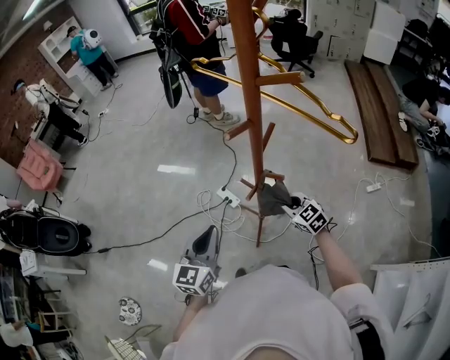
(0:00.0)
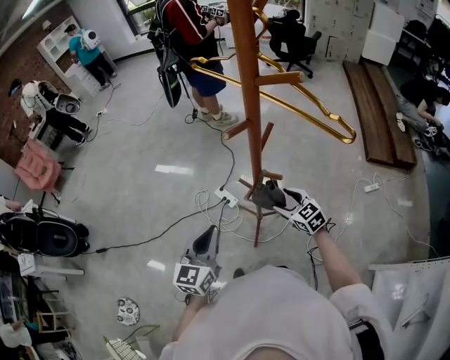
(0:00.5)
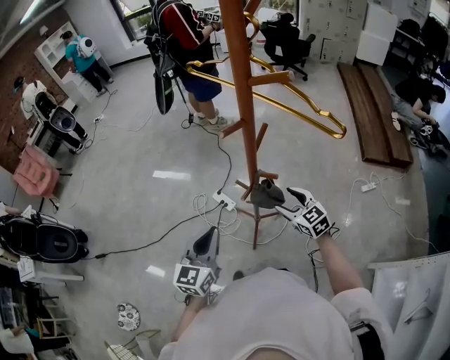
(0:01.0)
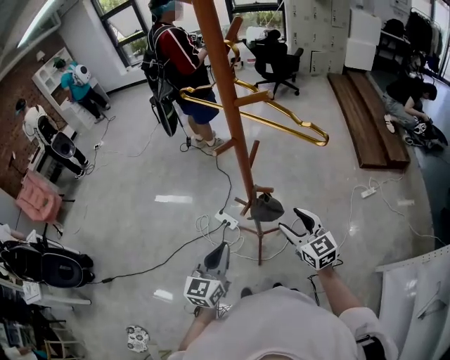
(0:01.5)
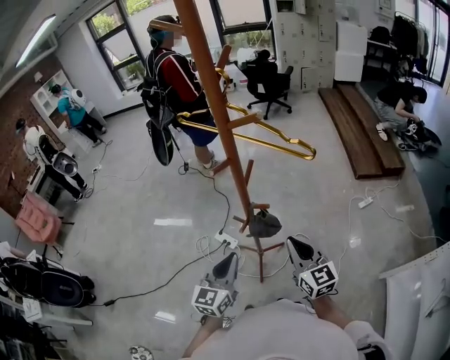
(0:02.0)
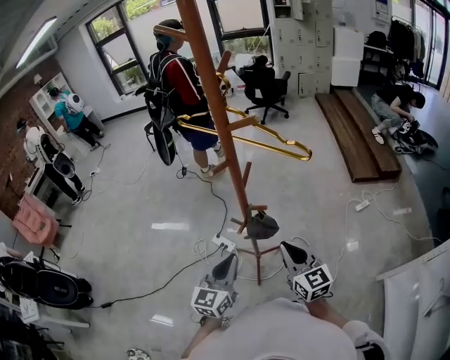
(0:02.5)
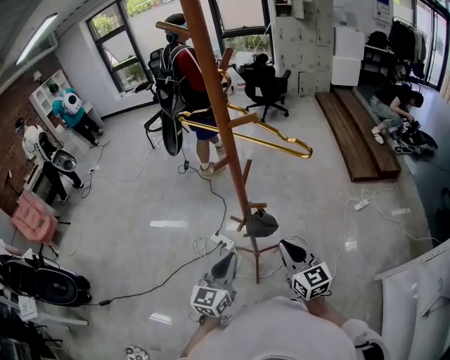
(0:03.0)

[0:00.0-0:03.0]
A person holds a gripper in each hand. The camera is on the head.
0:00.0 to 0:01.5: The right gripper moves upward and backward, roughly 15 cm, rotates roughly 30 degrees, and opens up.
0:01.5 to 0:03.0: The right gripper goes roughly 5 cm backward, and closes its fingers.

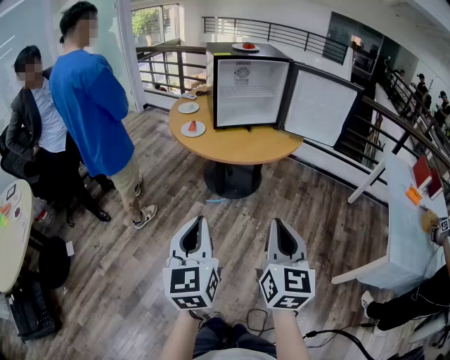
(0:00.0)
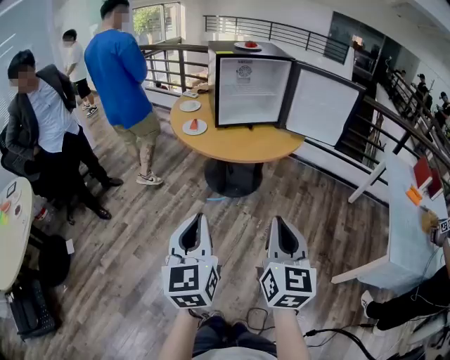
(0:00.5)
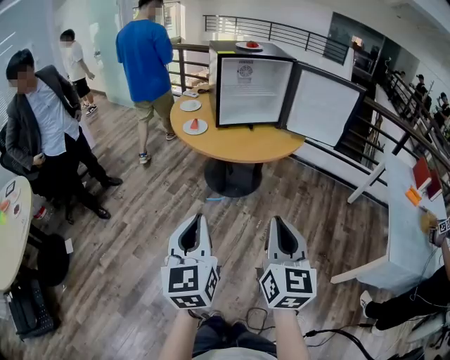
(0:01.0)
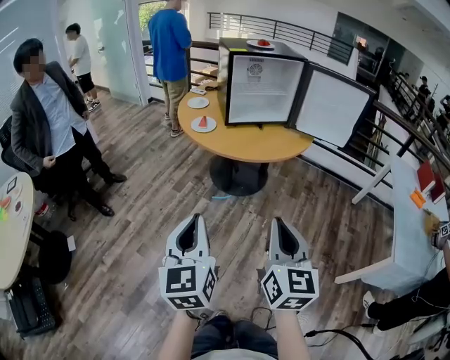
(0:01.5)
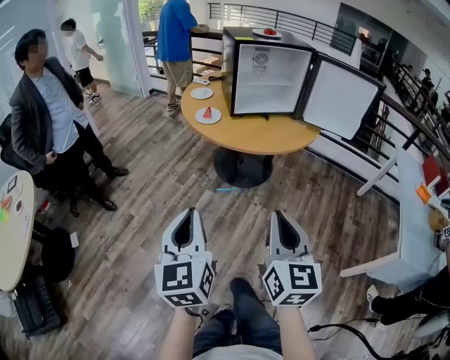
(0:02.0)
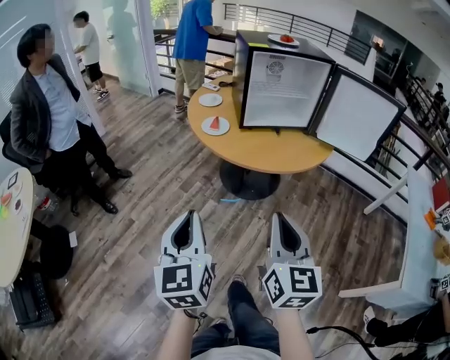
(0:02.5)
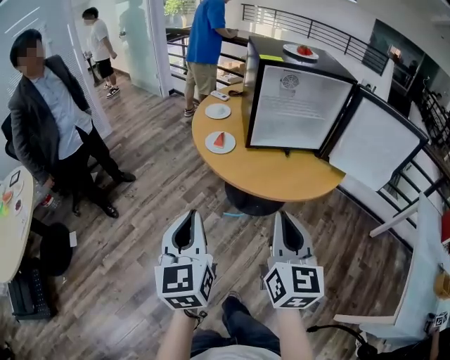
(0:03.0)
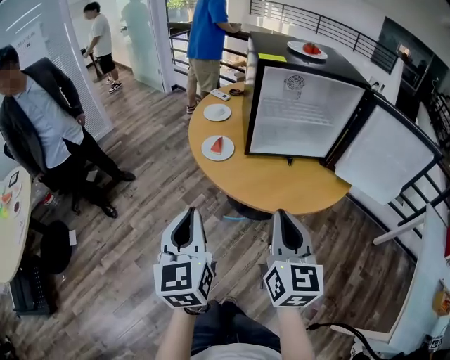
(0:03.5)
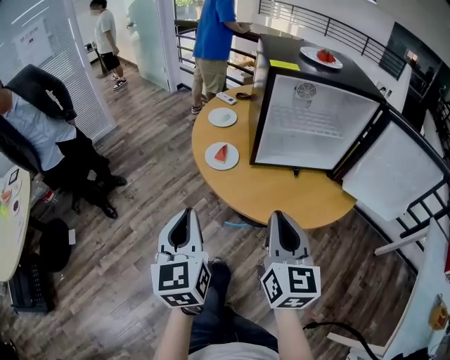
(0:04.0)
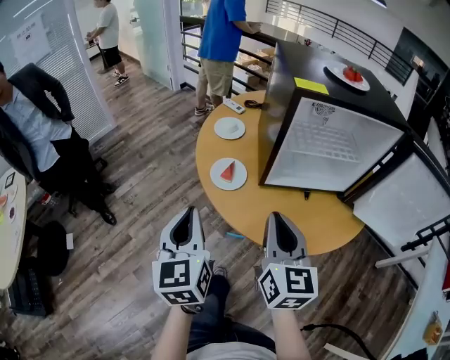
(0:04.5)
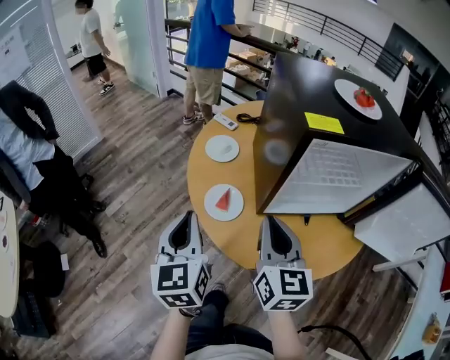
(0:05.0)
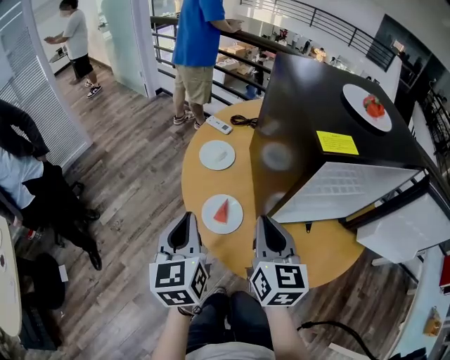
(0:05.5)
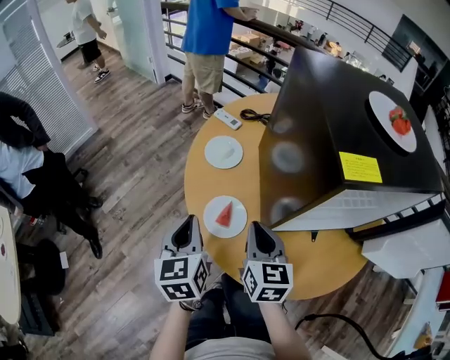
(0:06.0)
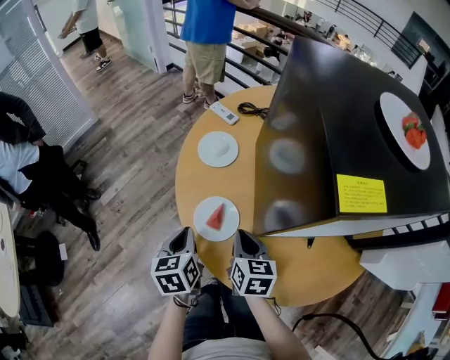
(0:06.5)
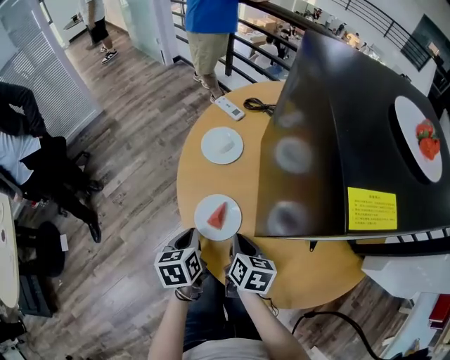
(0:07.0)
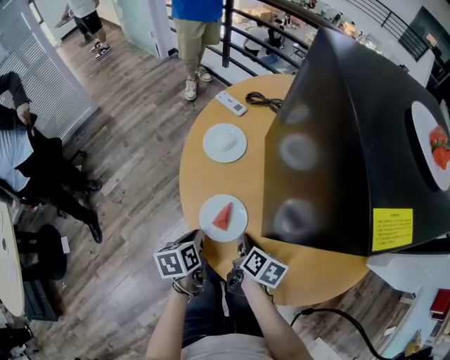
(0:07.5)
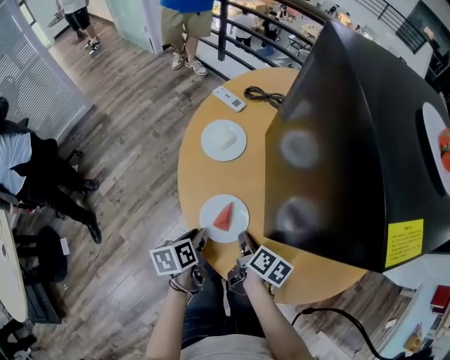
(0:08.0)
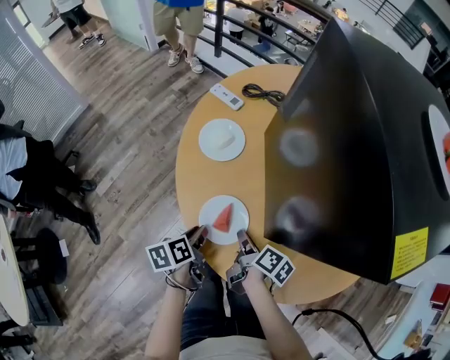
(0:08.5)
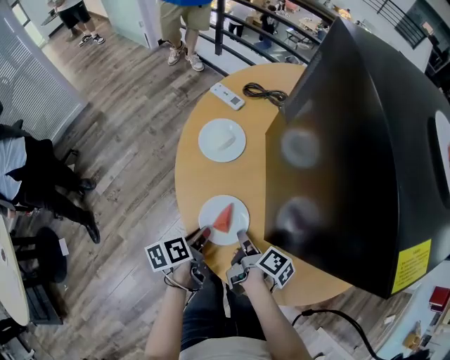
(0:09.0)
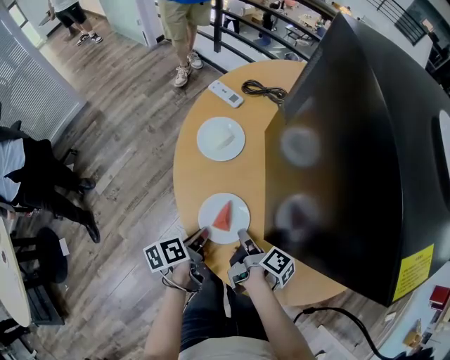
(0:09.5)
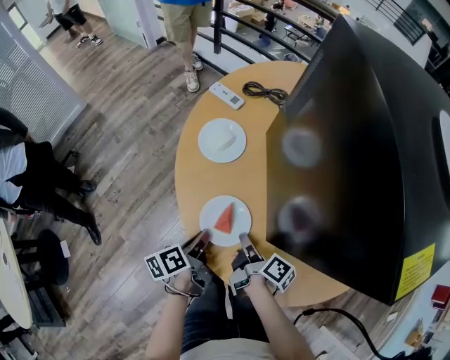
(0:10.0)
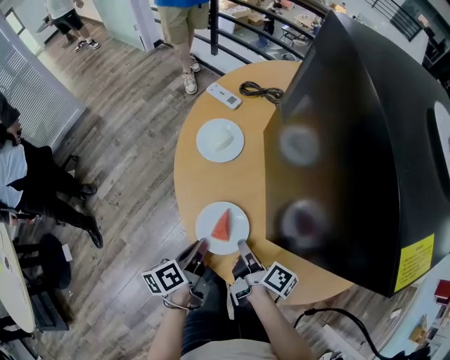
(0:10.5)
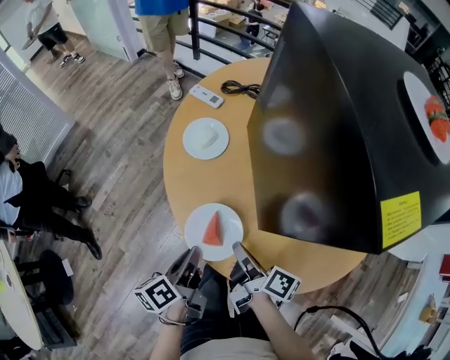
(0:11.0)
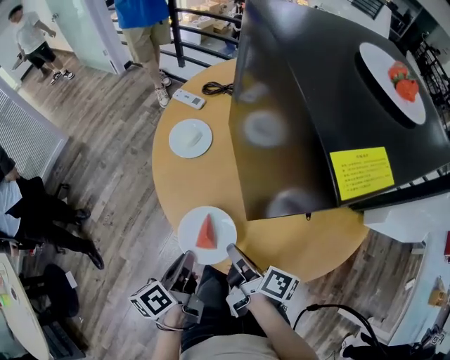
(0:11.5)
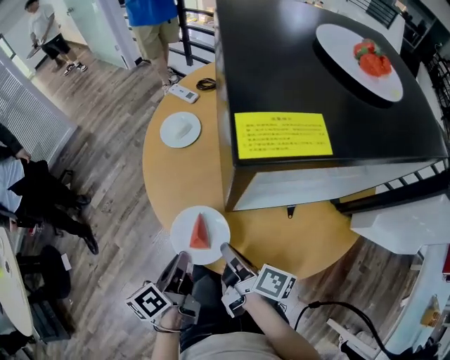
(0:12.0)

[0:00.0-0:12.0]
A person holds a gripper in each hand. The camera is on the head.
0:00.0 to 0:02.0: The two grippers go approximately 10 cm to the left.
0:02.0 to 0:04.0: The two grippers go roughly 35 cm forward.
0:04.0 to 0:06.0: The grippers both shift forward by approximately 30 cm.
0:06.0 to 0:08.0: Both grippers move downward, approximately 20 cm. The right gripper rotates around the line of its fingers by roughly 50 degrees, clockwise from behind; the left gripper rotates some 40 degrees, and opens up.
0:08.0 to 0:10.0: The left gripper changes its angle by approximately 20 degrees. Meanwhile the right gripper turns by approximately 30 degrees.
0:10.0 to 0:12.0: The left gripper is displaced backward, upward and to the right by about 15 cm; the right gripper goes roughly 15 cm upward, backward and to the right.

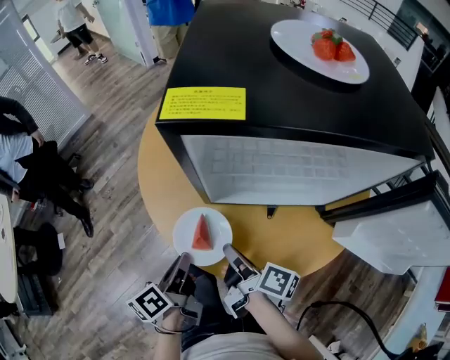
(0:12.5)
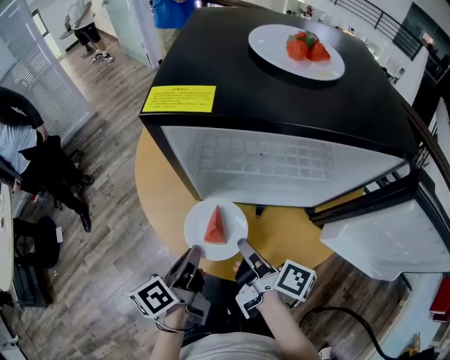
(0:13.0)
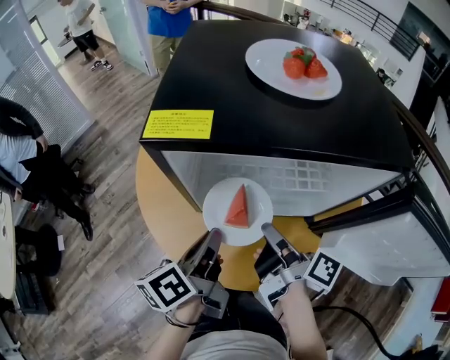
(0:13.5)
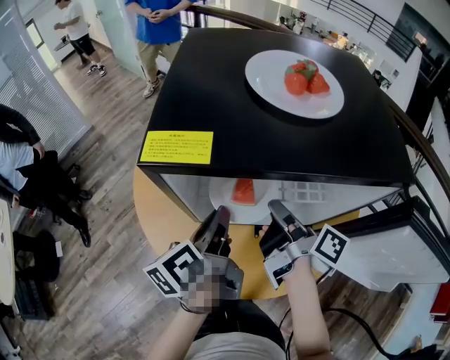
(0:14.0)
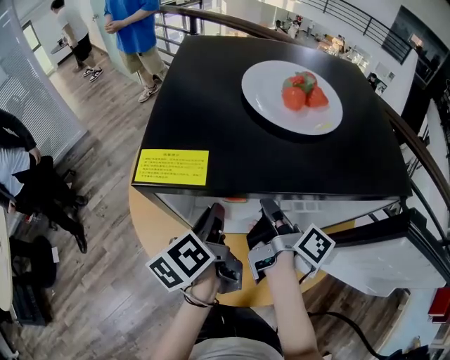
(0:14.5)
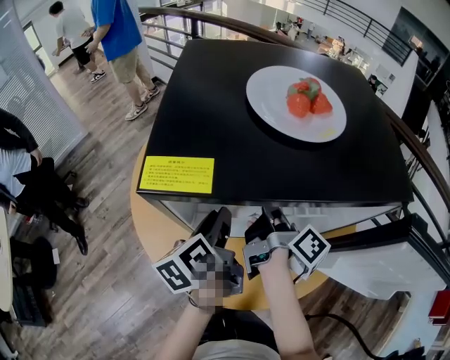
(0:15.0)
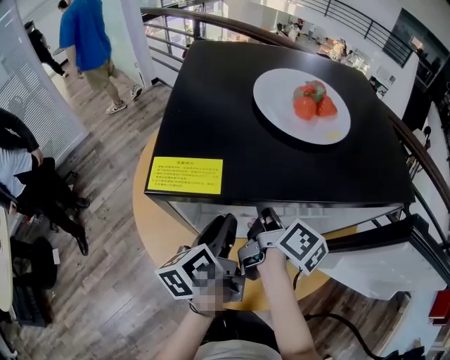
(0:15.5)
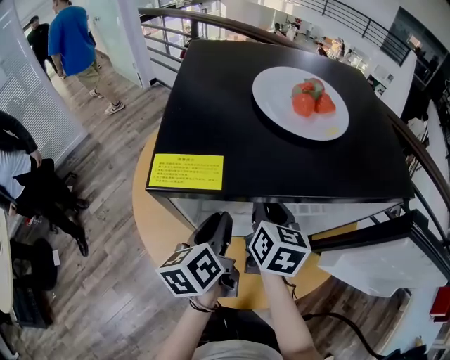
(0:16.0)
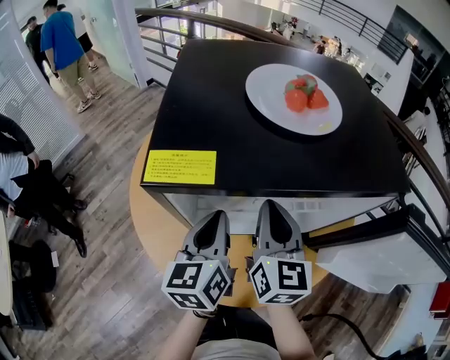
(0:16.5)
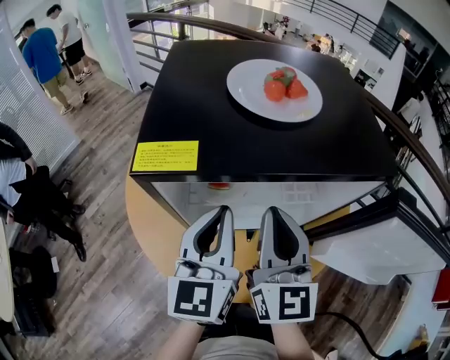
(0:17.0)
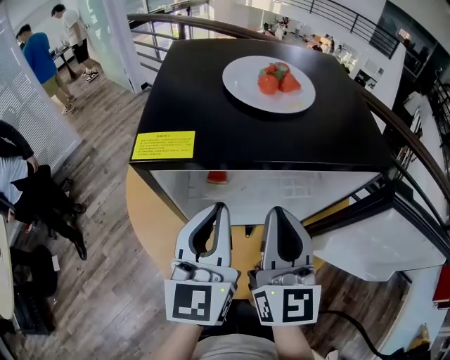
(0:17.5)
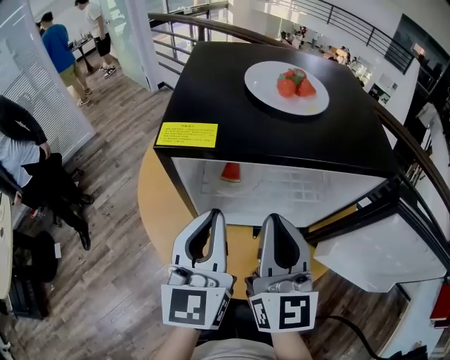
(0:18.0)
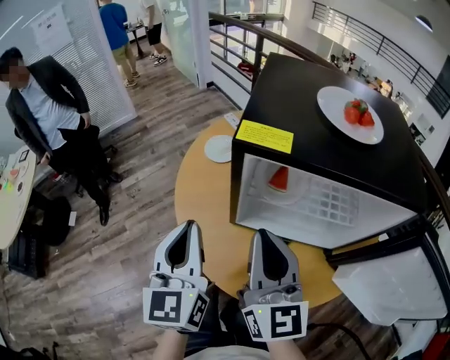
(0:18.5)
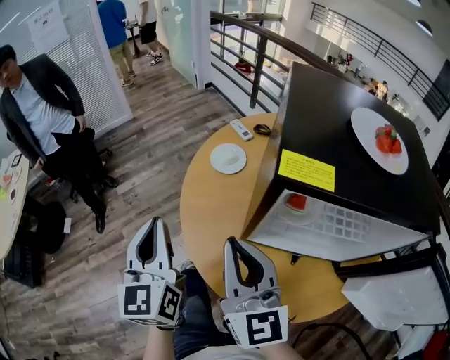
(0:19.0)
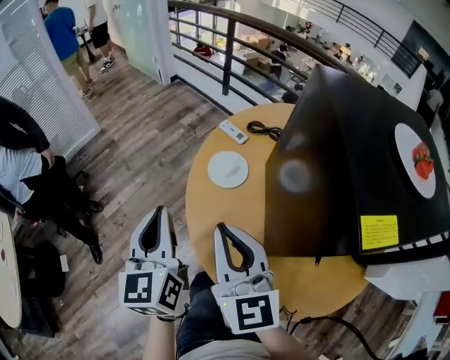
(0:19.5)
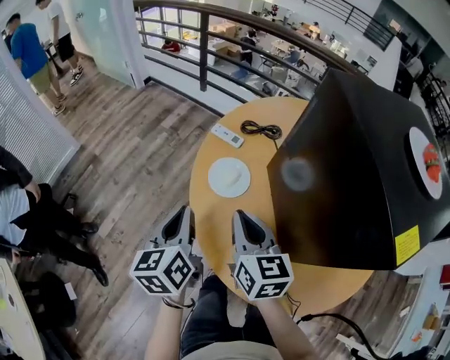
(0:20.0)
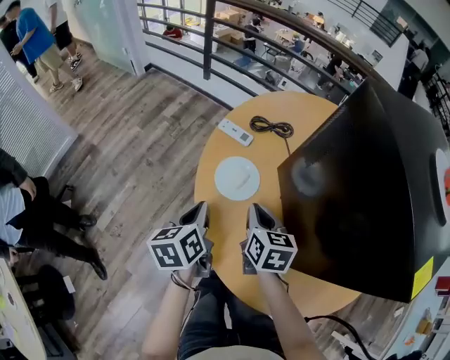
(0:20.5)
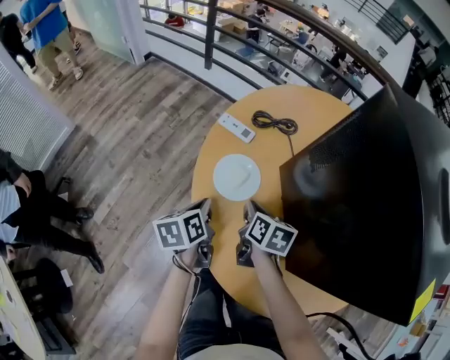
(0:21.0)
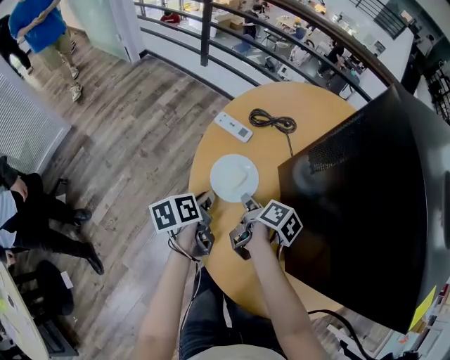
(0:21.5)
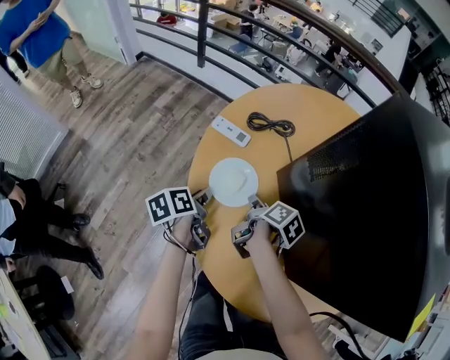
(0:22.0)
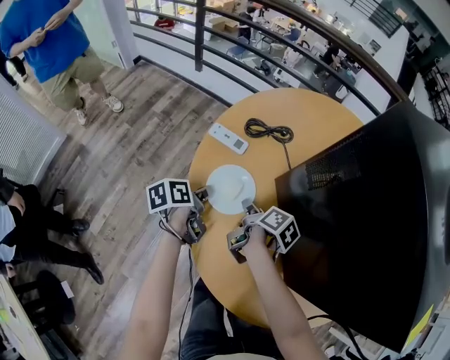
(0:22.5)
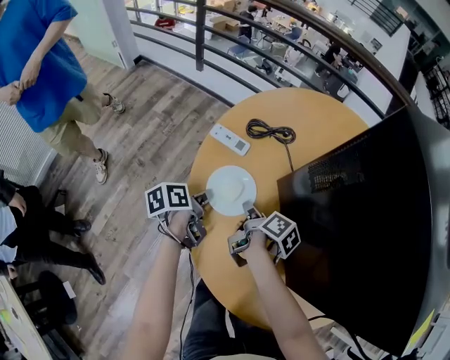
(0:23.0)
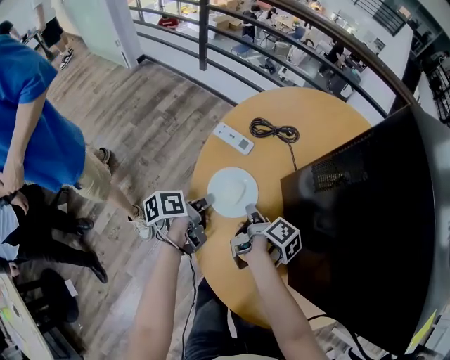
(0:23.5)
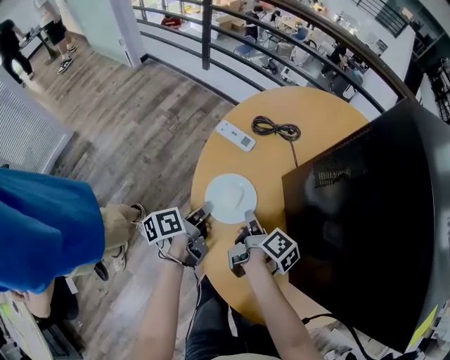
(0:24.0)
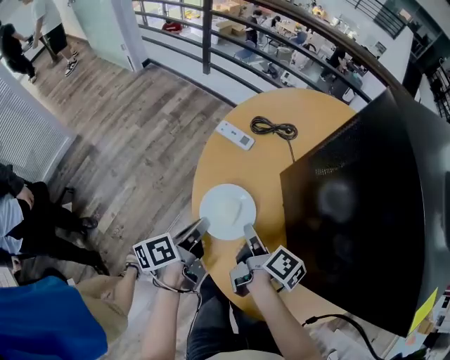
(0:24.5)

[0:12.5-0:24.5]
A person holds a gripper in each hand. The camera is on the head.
0:12.5 to 0:14.5: Both grippers move forward, to the right and upward, about 25 cm. The right gripper rotates about 20 degrees.
0:14.5 to 0:16.5: The right gripper heads upward, covering some 5 cm, and twists approximately 70 degrees counterclockwise, seen from behind; the left gripper changes its angle by roughly 40 degrees.
0:16.5 to 0:18.5: The right gripper shifts approximately 15 cm backward, to the left and upward, and rotates some 30 degrees. The left gripper travels to the left, backward and upward by about 20 cm, and changes its angle by about 30 degrees.
0:18.5 to 0:20.5: The right gripper changes place by approximately 40 cm, and tips its fingers downward by about 40 degrees. Meanwhile the left gripper moves some 40 cm, and swivels some 50 degrees.
0:20.5 to 0:22.5: Both grippers move downward and forward, roughly 15 cm. The left gripper turns by approximately 30 degrees; the right gripper rolls clockwise, seen from behind, by about 60 degrees.
0:22.5 to 0:24.5: The grippers both shift backward and upward by about 15 cm.
